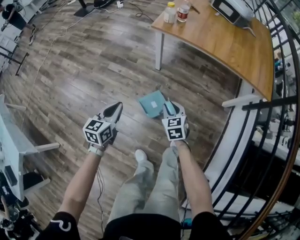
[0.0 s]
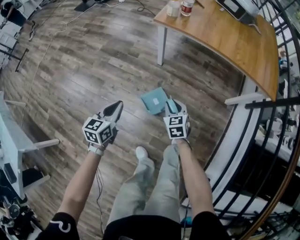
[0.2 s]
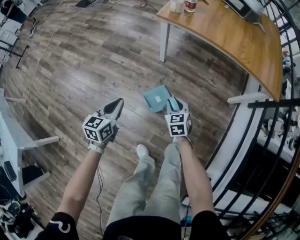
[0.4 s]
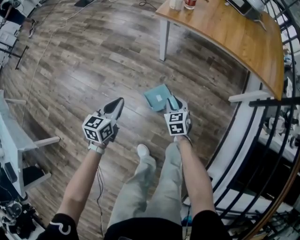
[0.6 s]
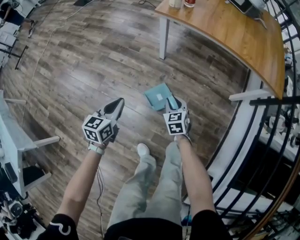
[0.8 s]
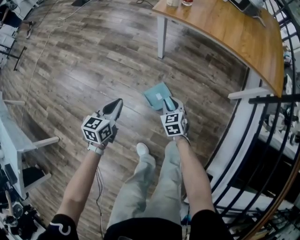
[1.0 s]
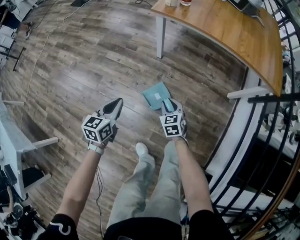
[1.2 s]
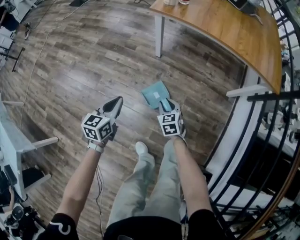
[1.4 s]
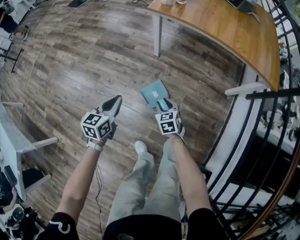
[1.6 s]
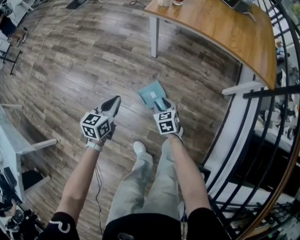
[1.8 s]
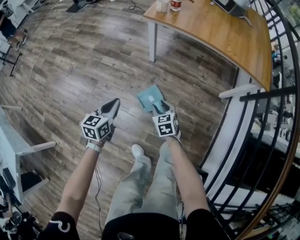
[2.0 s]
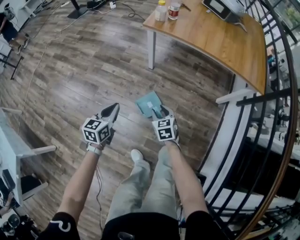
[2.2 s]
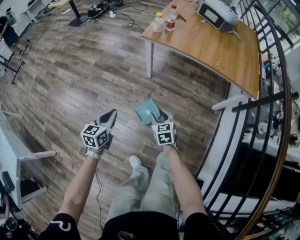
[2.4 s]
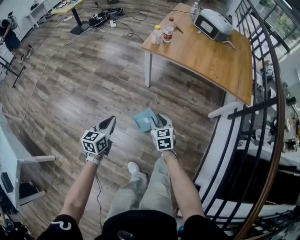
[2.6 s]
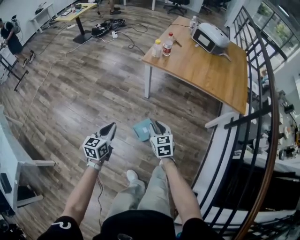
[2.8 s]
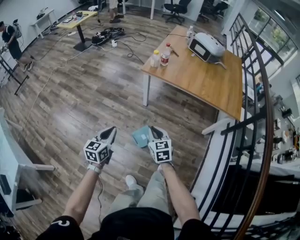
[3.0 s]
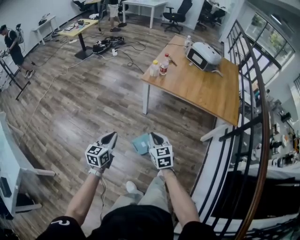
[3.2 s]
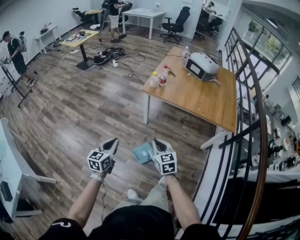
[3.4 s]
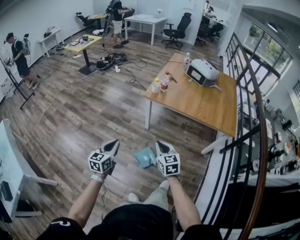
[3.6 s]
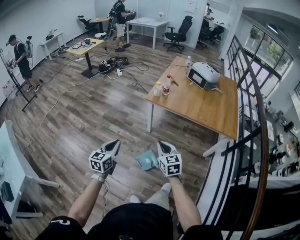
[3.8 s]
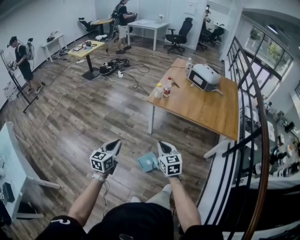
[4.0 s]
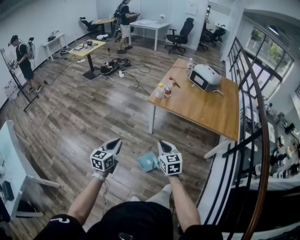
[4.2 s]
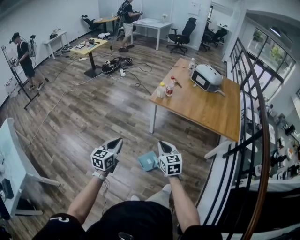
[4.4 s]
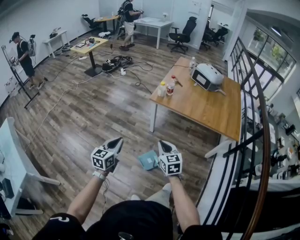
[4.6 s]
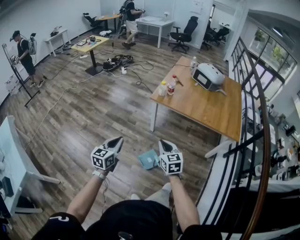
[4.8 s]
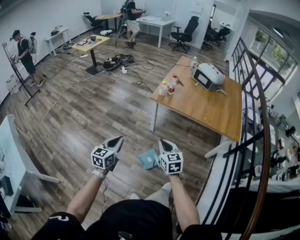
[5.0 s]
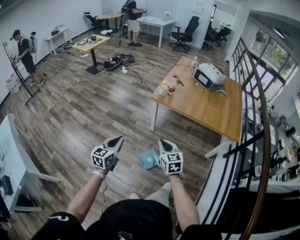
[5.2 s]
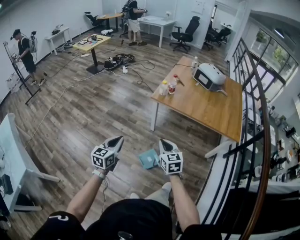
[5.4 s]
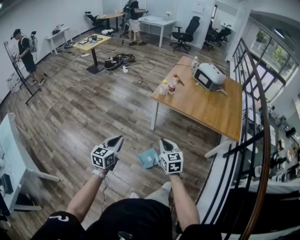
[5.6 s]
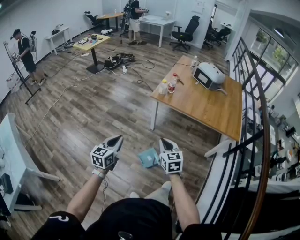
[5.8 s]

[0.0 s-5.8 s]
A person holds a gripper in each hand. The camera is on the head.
0.0 to 1.4 s: The left gripper shifts about 5 cm downward. Meanwhile the right gripper moves downward, some 10 cm.
1.4 to 2.8 s: The right gripper is displaced upward by roughly 25 cm. The left gripper travels upward by some 15 cm.
2.8 to 4.4 s: The grippers both shift upward by approximately 15 cm. The right gripper closes up.
4.4 to 5.8 s: Both grippers stay about where they are.

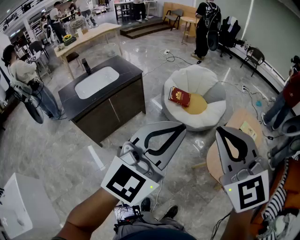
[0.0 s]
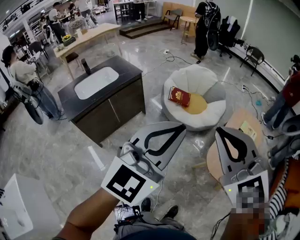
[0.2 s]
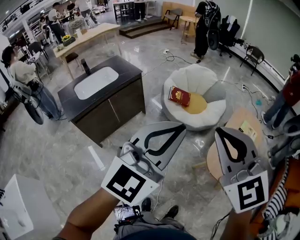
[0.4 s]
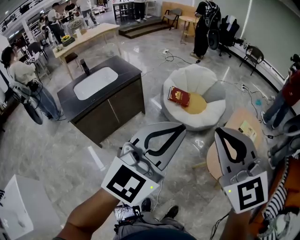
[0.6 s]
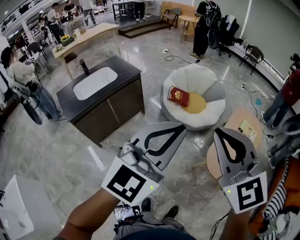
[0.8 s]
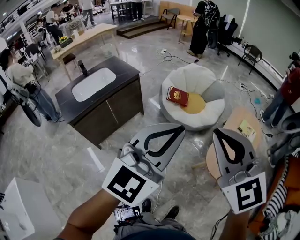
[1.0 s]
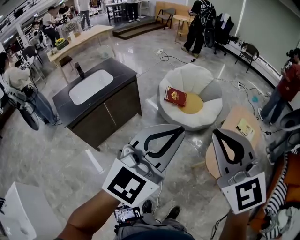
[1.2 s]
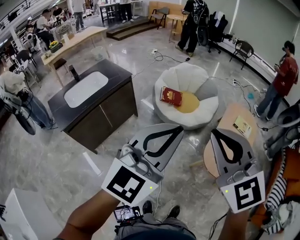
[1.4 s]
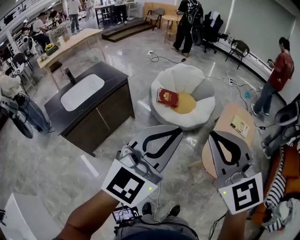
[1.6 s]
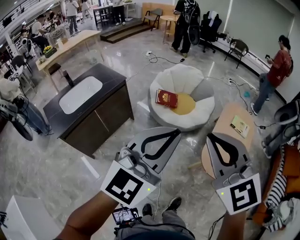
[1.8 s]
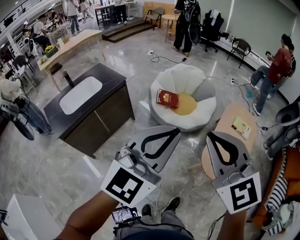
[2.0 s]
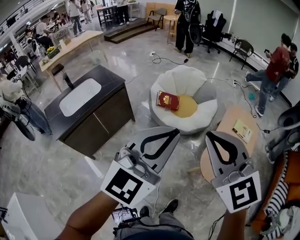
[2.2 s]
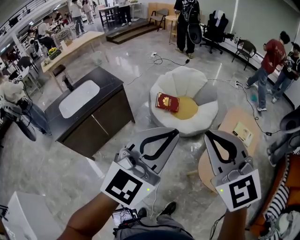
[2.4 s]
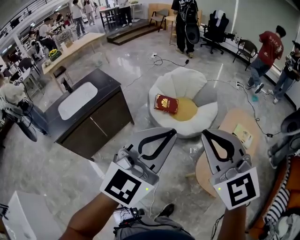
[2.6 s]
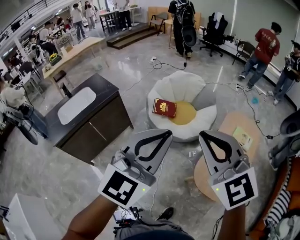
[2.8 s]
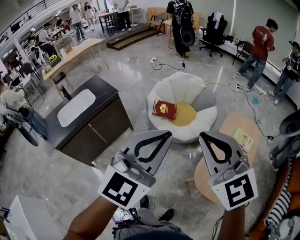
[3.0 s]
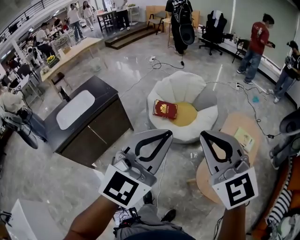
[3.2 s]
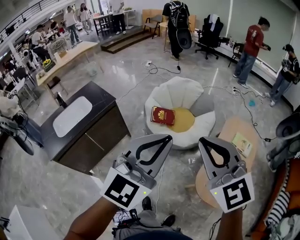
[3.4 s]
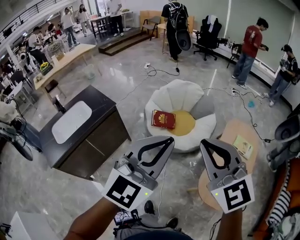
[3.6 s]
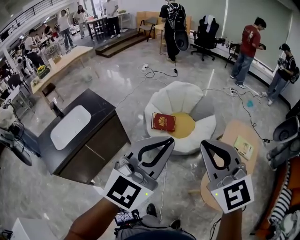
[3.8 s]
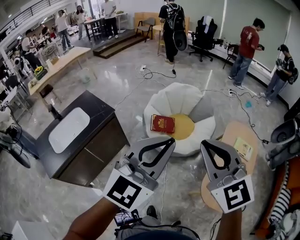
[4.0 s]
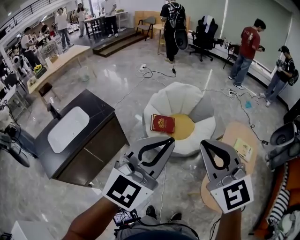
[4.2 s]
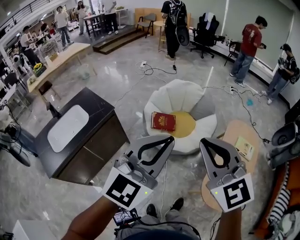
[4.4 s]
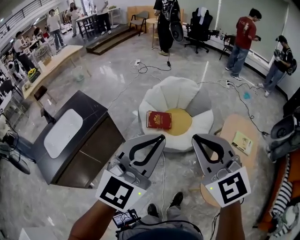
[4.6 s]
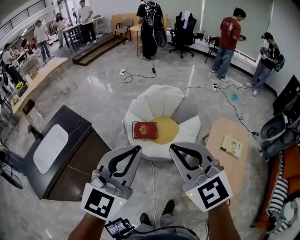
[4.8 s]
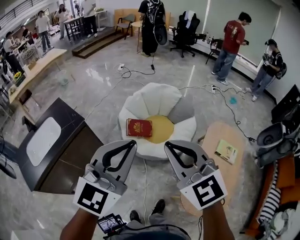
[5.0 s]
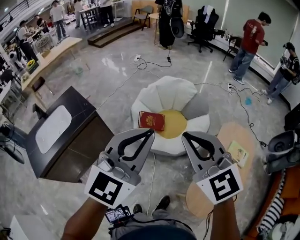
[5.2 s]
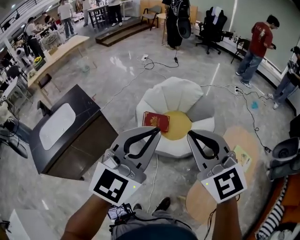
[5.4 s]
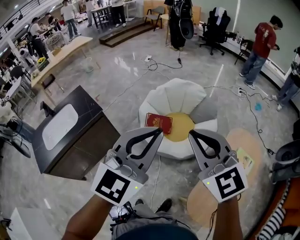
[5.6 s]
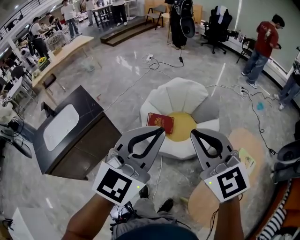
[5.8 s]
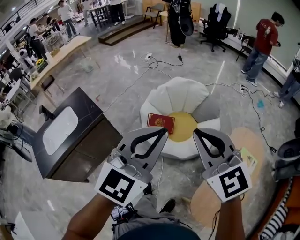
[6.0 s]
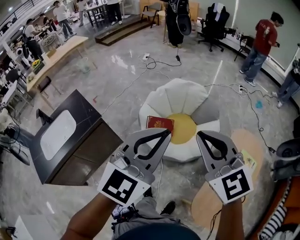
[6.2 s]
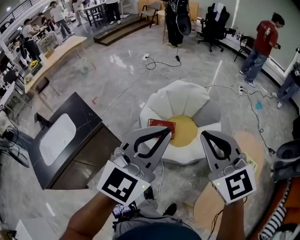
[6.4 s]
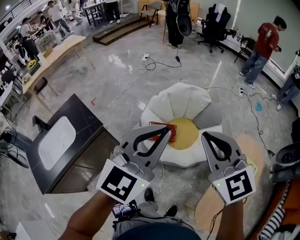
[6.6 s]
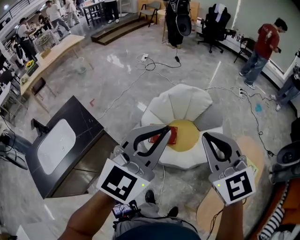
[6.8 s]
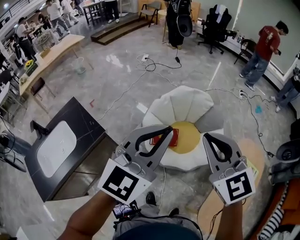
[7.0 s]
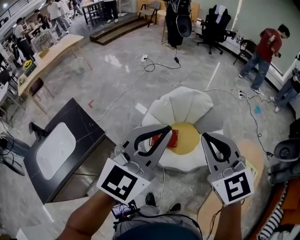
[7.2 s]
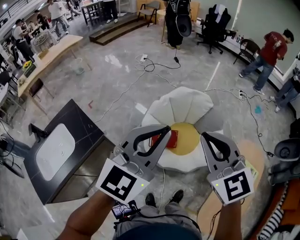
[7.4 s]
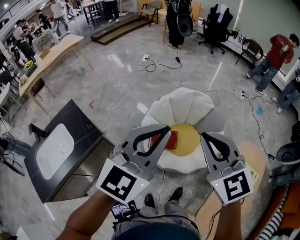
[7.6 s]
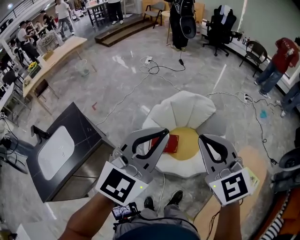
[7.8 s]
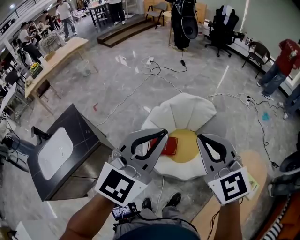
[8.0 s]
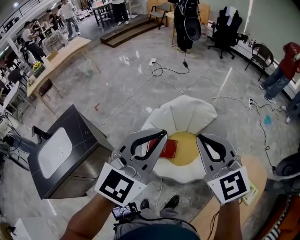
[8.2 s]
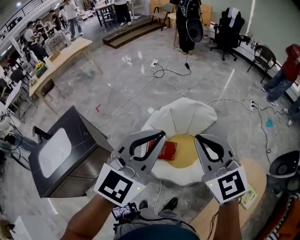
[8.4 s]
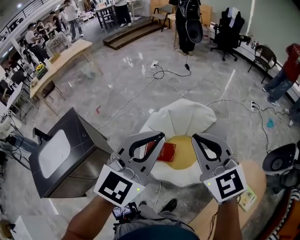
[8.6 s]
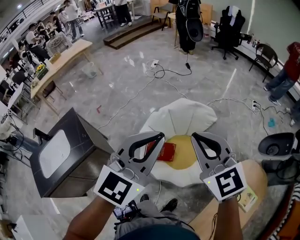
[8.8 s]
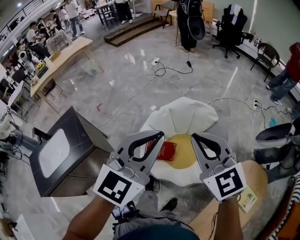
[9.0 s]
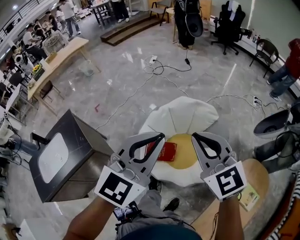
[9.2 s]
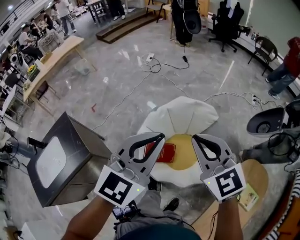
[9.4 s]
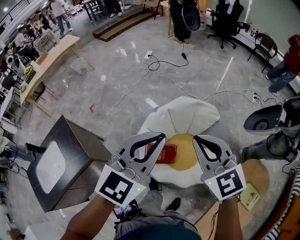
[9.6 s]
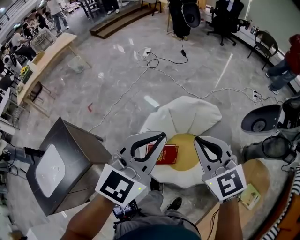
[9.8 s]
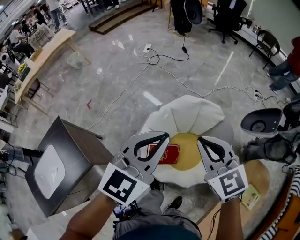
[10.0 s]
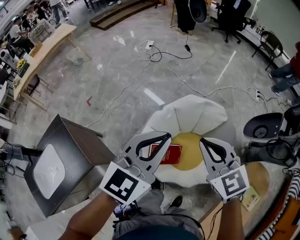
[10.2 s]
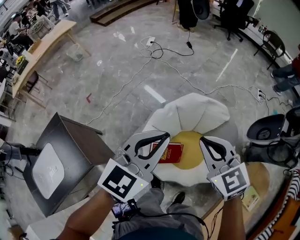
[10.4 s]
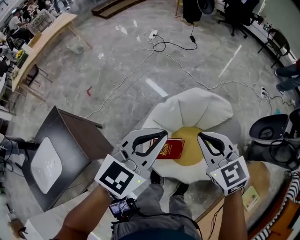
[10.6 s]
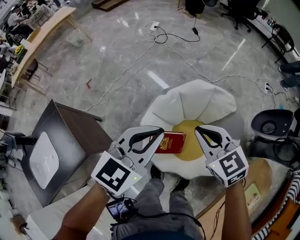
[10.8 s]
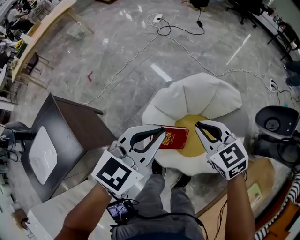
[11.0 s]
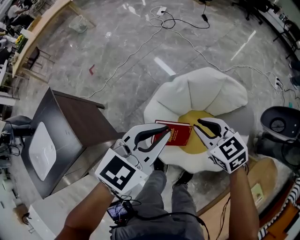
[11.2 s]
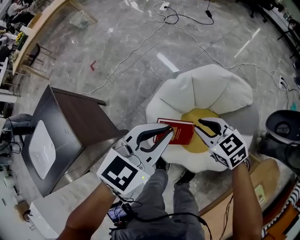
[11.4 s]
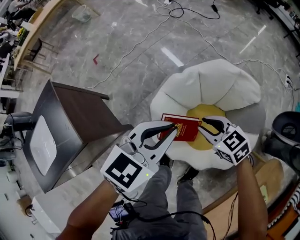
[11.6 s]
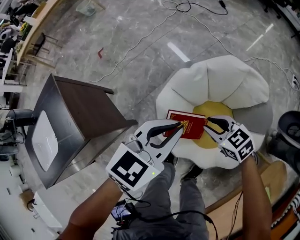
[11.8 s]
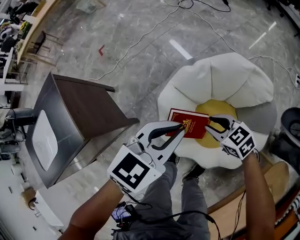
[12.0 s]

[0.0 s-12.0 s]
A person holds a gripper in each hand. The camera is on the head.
0.0 to 1.6 s: The grippers stay close to where they were, moving slightly.
1.6 to 3.0 s: Both grippers move forward and to the right, roughly 20 cm.
3.0 to 4.4 s: Both grippers travel together forward and to the left, about 20 cm.
4.4 to 6.0 s: Both grippers move forward and to the right, about 20 cm.
6.0 to 7.6 s: Both grippers move forward and to the left, roughly 20 cm.
7.6 to 9.0 s: The left gripper goes roughly 15 cm to the right and forward. Meanwhile the right gripper goes some 15 cm forward and to the right.
9.0 to 10.4 s: The two grippers go roughly 25 cm forward, downward and to the left.
10.4 to 12.0 s: The left gripper goes approximately 25 cm downward, and swivels roughly 20 degrees. Meanwhile the right gripper is displaced downward by some 35 cm, changes its angle by approximately 40 degrees, and opens.

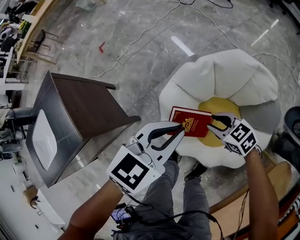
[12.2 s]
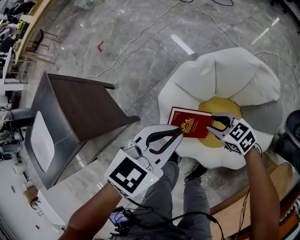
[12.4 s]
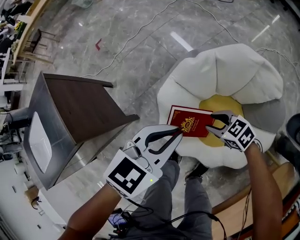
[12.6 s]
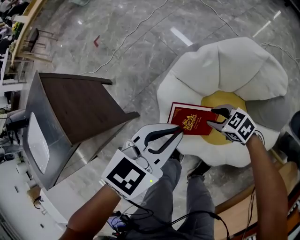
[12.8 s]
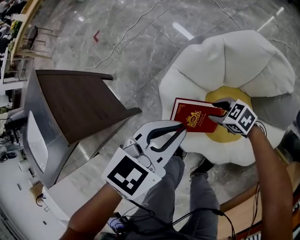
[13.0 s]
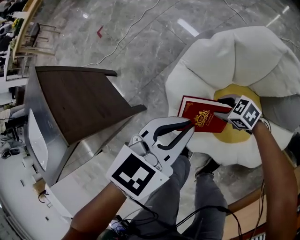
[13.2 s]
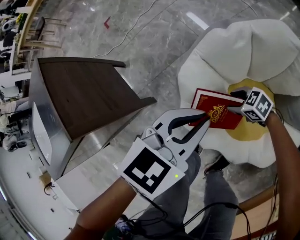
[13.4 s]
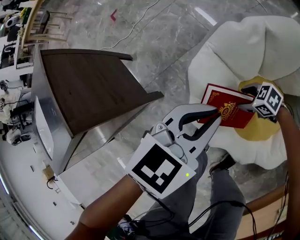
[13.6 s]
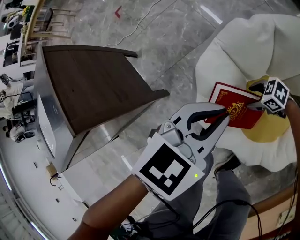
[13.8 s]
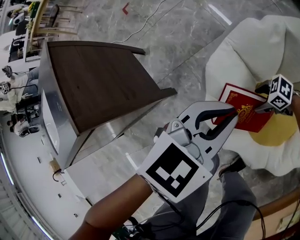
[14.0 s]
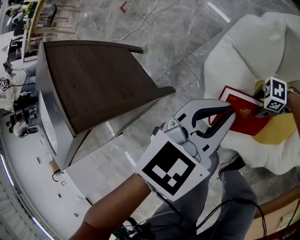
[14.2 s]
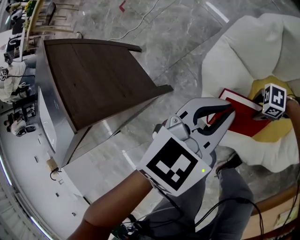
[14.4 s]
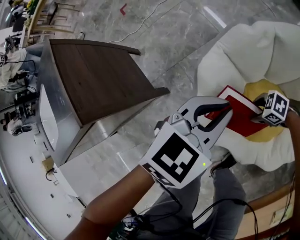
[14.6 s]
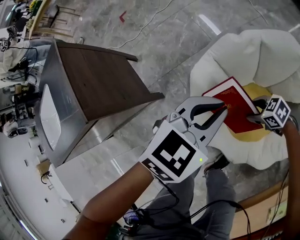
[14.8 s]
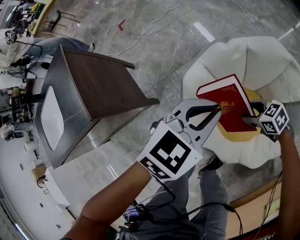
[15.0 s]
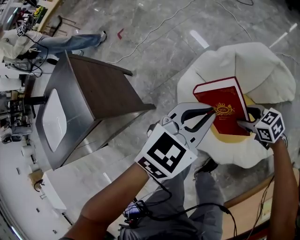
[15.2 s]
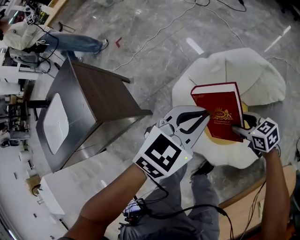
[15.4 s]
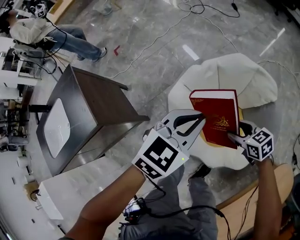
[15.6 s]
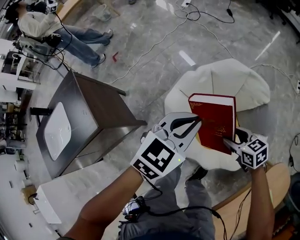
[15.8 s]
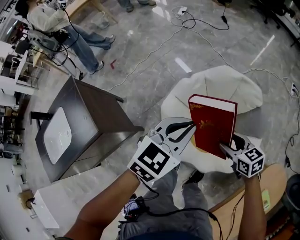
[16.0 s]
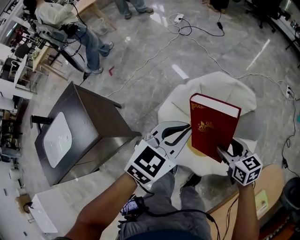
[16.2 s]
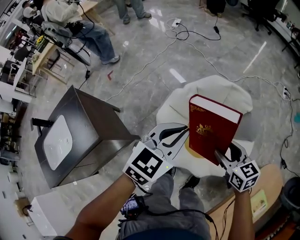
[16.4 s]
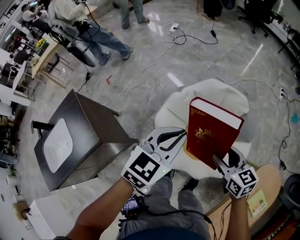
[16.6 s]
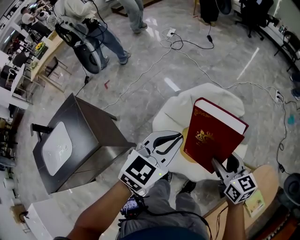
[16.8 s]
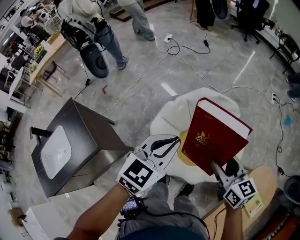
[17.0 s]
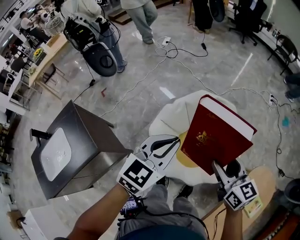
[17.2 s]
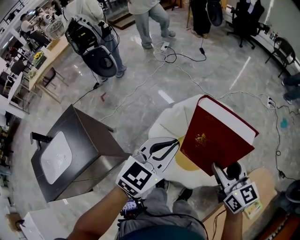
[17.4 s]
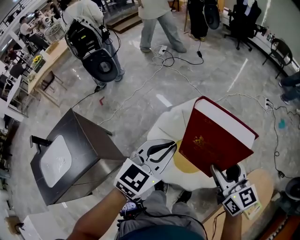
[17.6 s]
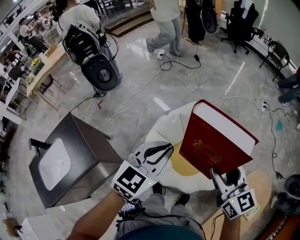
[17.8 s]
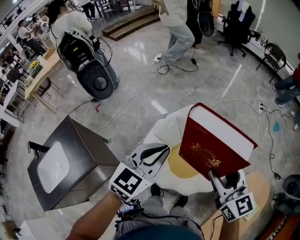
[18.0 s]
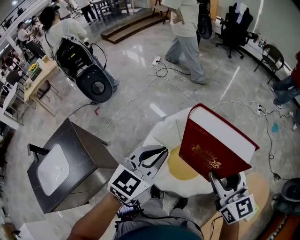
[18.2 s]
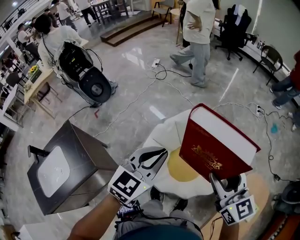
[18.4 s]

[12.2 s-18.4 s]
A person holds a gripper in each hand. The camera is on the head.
12.2 to 13.8 s: The left gripper moves downward, roughly 20 cm. The right gripper moves downward, some 30 cm, turns by approximately 30 degrees, and opens its fingers.
13.8 to 15.4 s: The left gripper moves upward, some 20 cm. The right gripper heads upward, covering some 30 cm, and swivels approximately 30 degrees.
15.4 to 16.8 s: The right gripper shifts approximately 30 cm upward, and turns by approximately 40 degrees, while the left gripper moves upward, about 20 cm.
16.8 to 18.4 s: The right gripper heads upward, covering roughly 20 cm, and changes its angle by approximately 30 degrees. The left gripper is displaced upward by some 10 cm.
